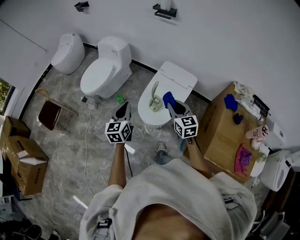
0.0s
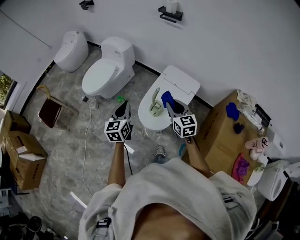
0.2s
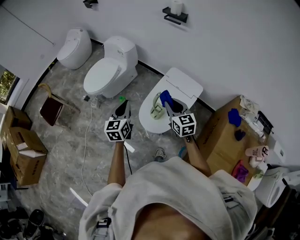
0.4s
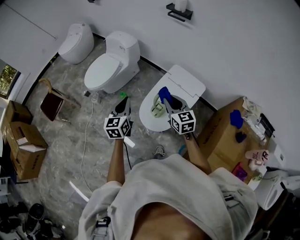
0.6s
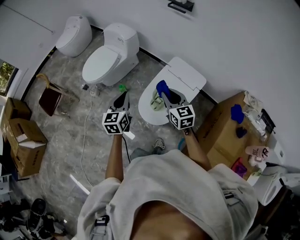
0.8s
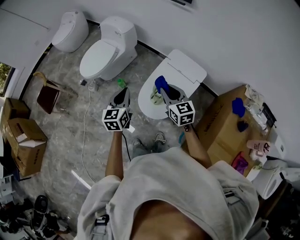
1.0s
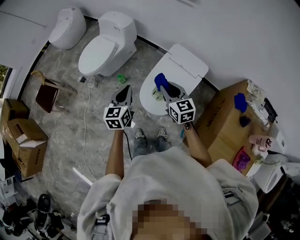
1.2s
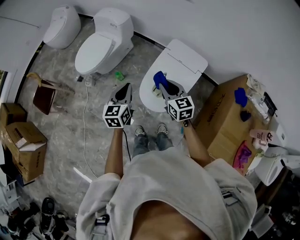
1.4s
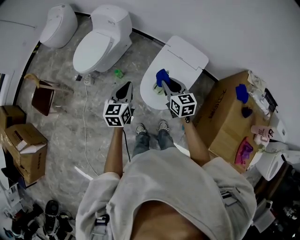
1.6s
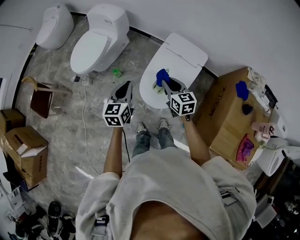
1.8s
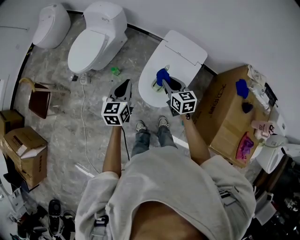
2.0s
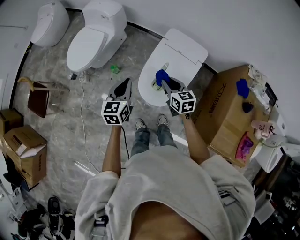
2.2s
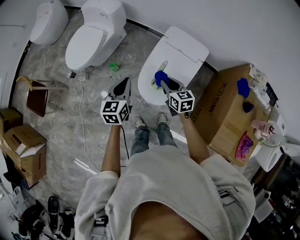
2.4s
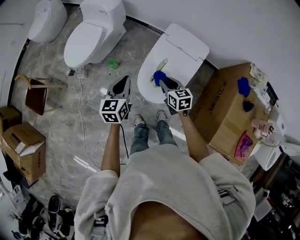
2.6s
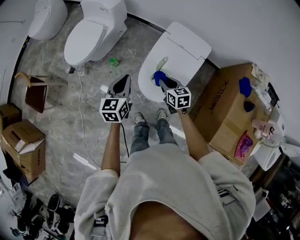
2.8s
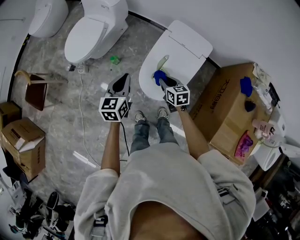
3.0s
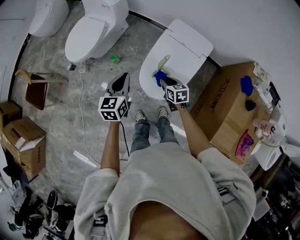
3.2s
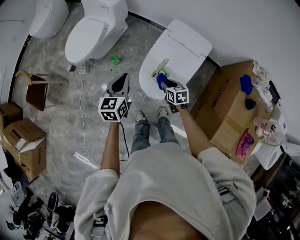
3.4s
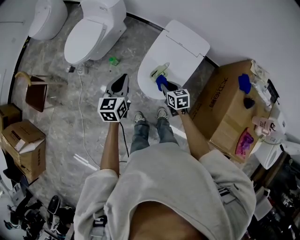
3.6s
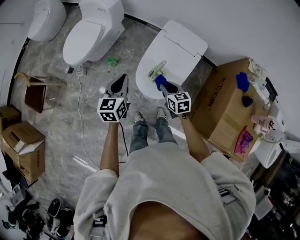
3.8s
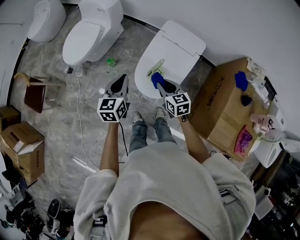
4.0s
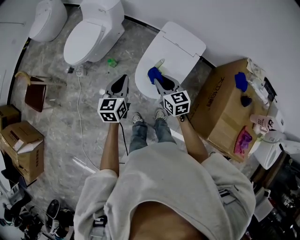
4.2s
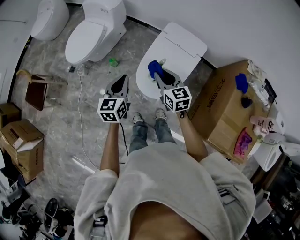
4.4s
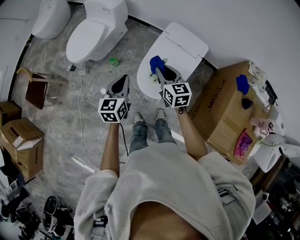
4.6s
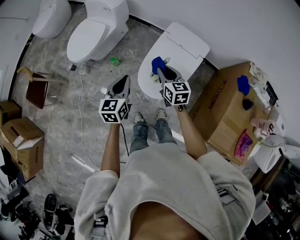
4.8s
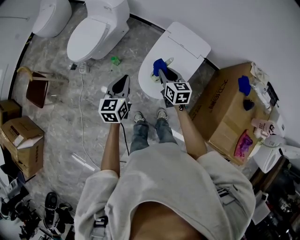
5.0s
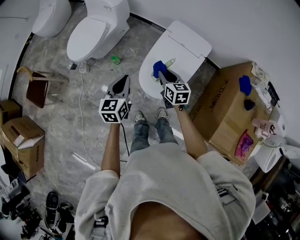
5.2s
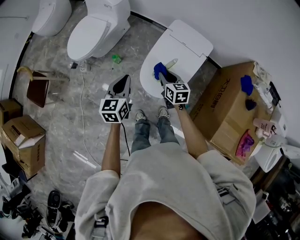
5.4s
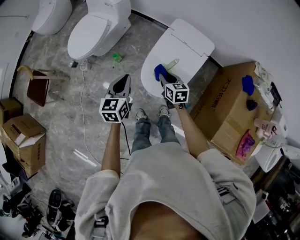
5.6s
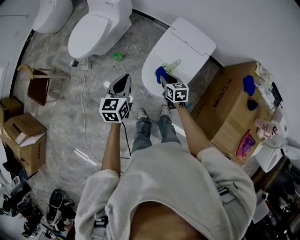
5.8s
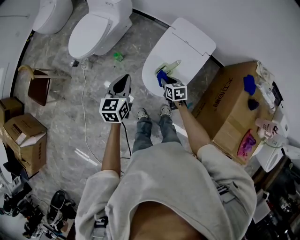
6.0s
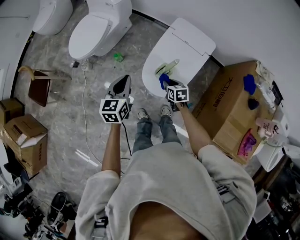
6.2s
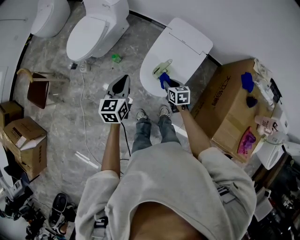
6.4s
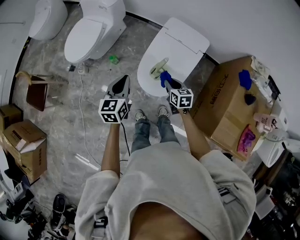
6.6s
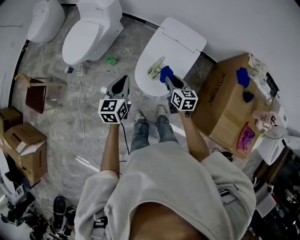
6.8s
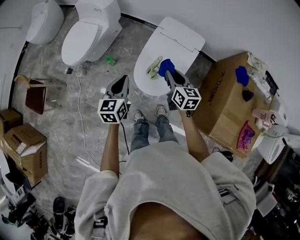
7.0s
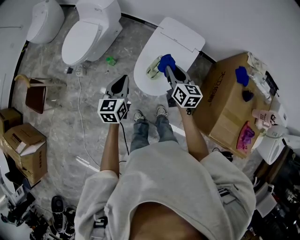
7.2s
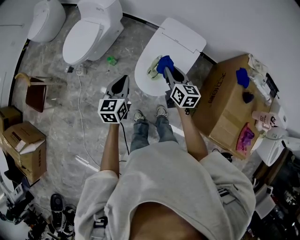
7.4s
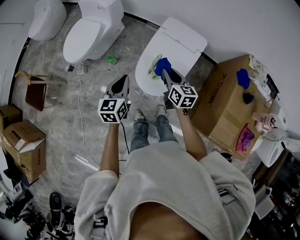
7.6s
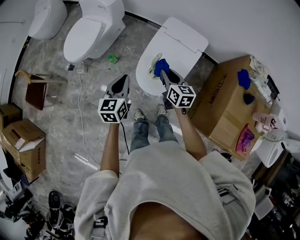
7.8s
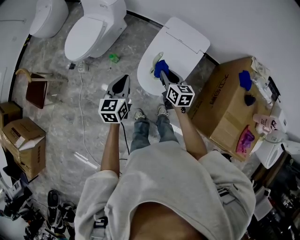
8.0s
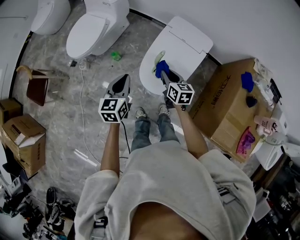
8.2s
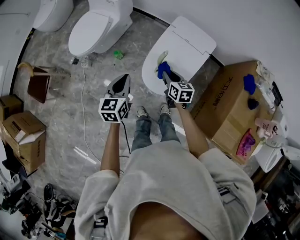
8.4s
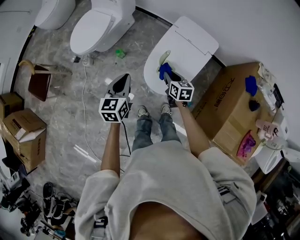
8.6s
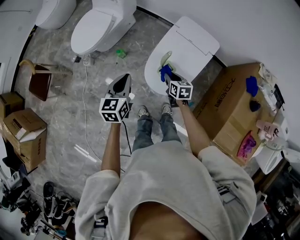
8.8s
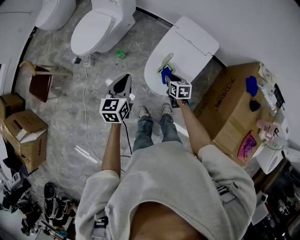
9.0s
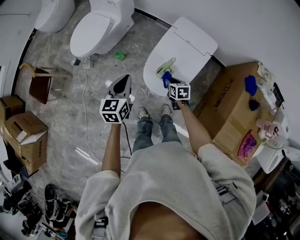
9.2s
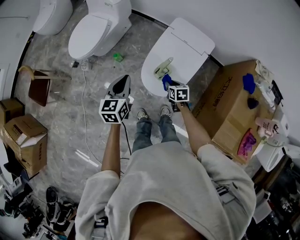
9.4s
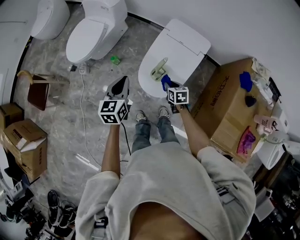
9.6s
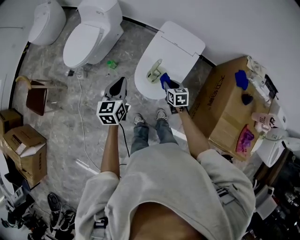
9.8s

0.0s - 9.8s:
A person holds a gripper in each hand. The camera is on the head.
0.0s - 1.4s: The left gripper moves forward, some 10 cm. The right gripper shifts roughly 10 cm forward and to the left.
1.4s - 2.8s: The right gripper shifts approximately 15 cm downward, and swivels roughly 20 degrees. The left gripper ends up some 5 cm from where it was.
2.8s - 4.2s: The right gripper heads upward, covering about 10 cm.
4.2s - 5.6s: The right gripper travels downward by approximately 10 cm.
5.6s - 7.0s: The right gripper travels upward and to the right by some 10 cm.
7.0s - 8.4s: The right gripper heads downward and to the left, covering some 10 cm.
8.4s - 9.8s: The right gripper travels to the right by about 5 cm.

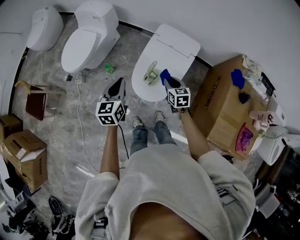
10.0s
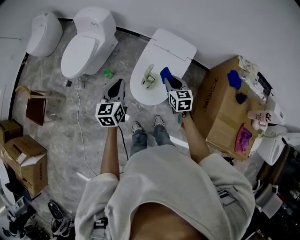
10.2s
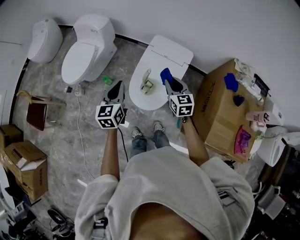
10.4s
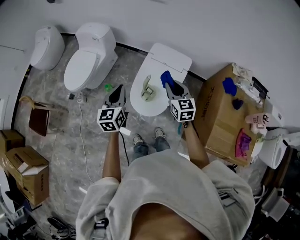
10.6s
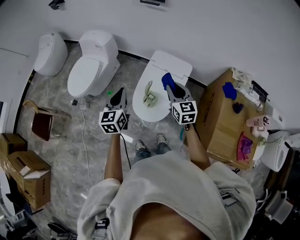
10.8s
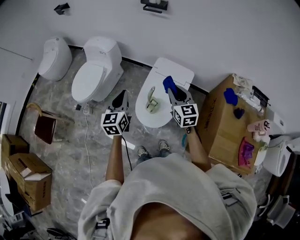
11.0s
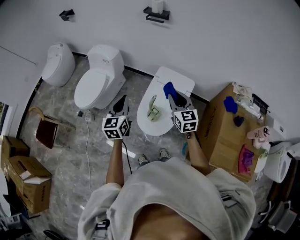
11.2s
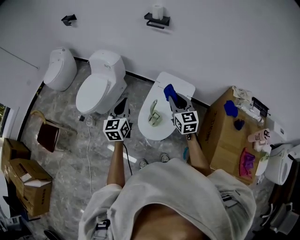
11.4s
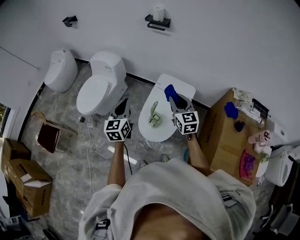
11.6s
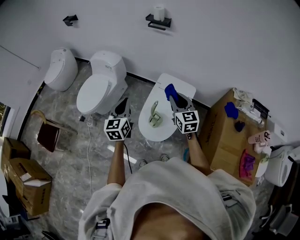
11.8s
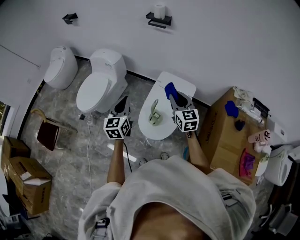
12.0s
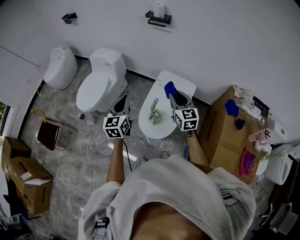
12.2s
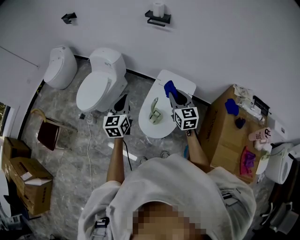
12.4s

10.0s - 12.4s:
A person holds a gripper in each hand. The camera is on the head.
10.0s - 11.2s: The left gripper is displaced upward by about 10 cm. The right gripper travels upward by about 20 cm, and swivels roughly 30 degrees.
11.2s - 12.4s: The grippers stay close to where they were, moving slightly.

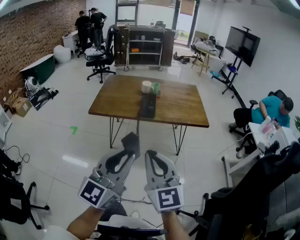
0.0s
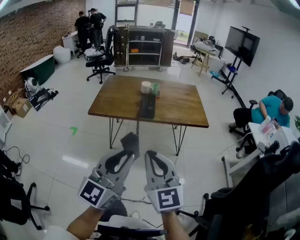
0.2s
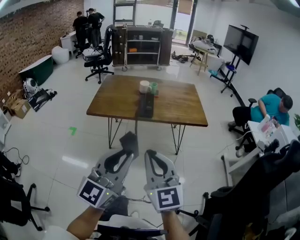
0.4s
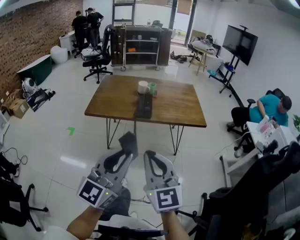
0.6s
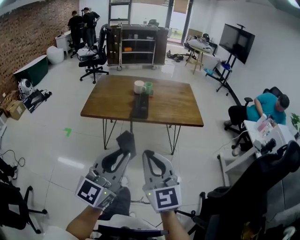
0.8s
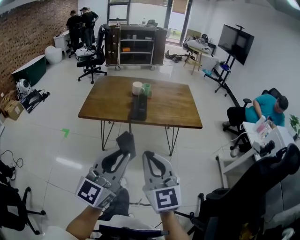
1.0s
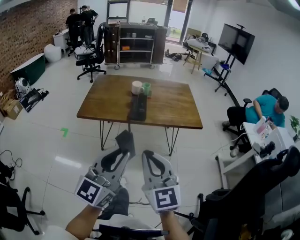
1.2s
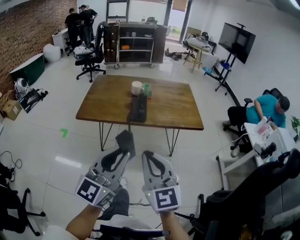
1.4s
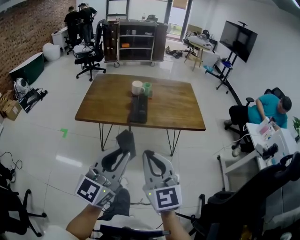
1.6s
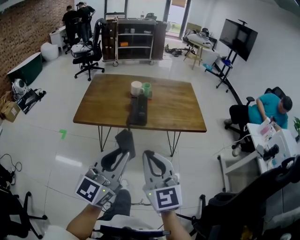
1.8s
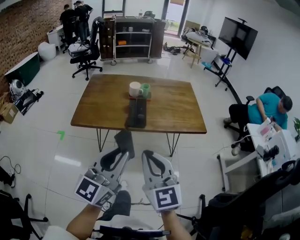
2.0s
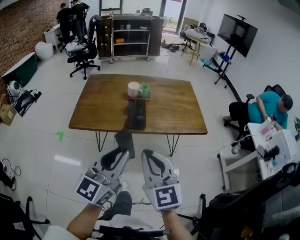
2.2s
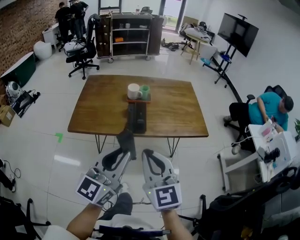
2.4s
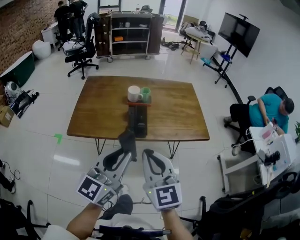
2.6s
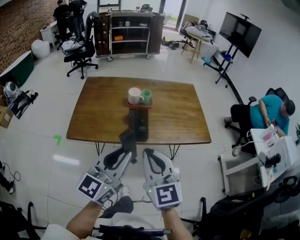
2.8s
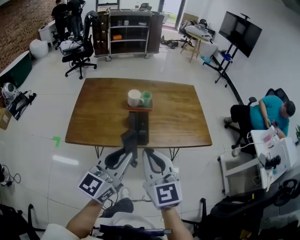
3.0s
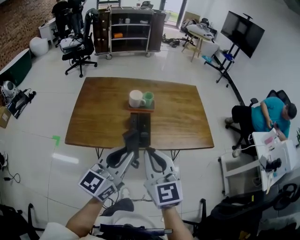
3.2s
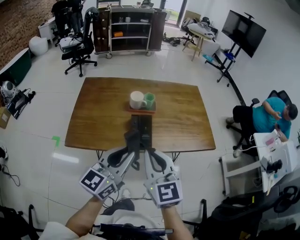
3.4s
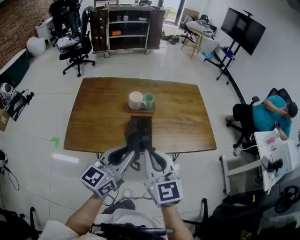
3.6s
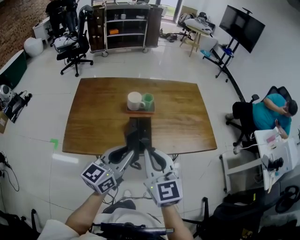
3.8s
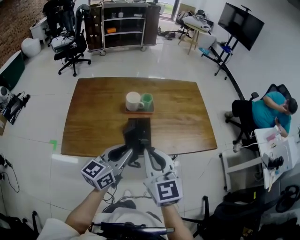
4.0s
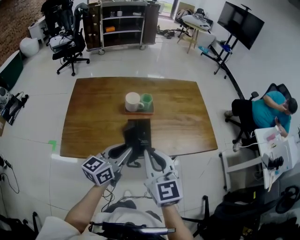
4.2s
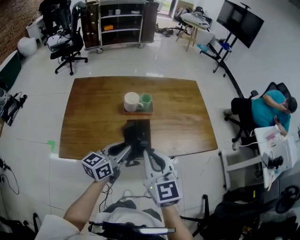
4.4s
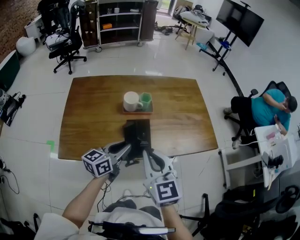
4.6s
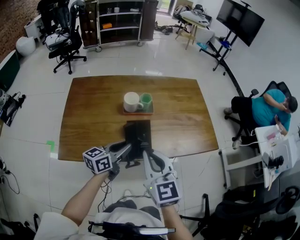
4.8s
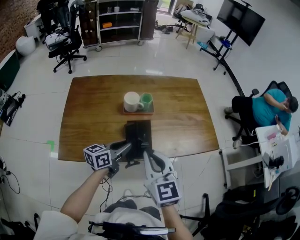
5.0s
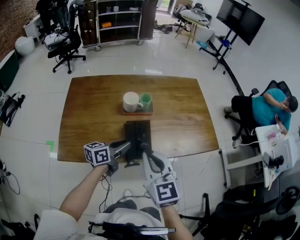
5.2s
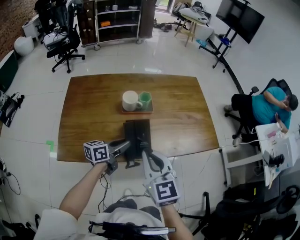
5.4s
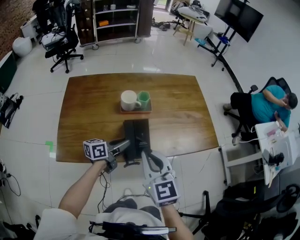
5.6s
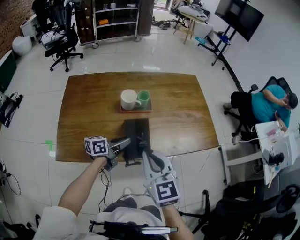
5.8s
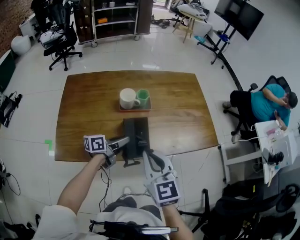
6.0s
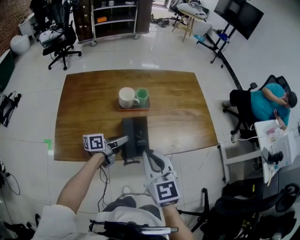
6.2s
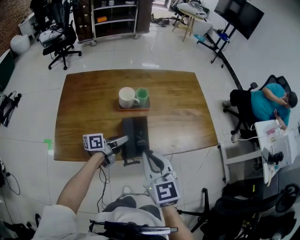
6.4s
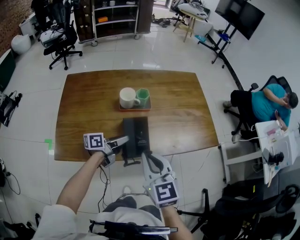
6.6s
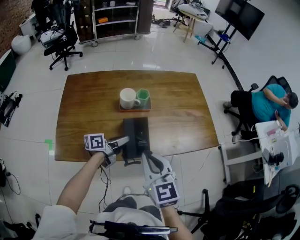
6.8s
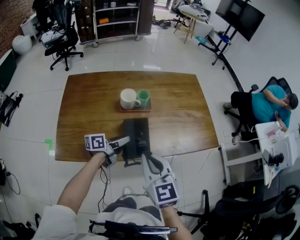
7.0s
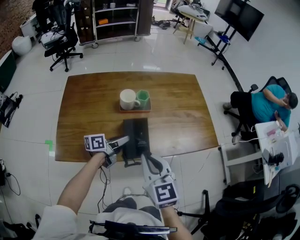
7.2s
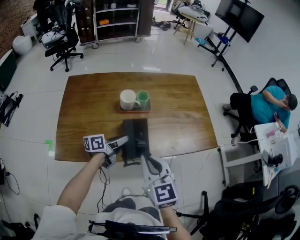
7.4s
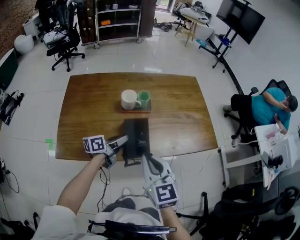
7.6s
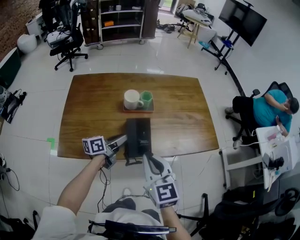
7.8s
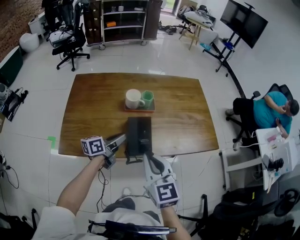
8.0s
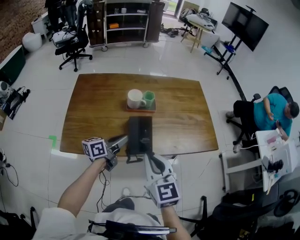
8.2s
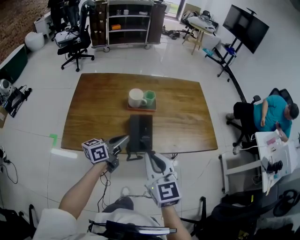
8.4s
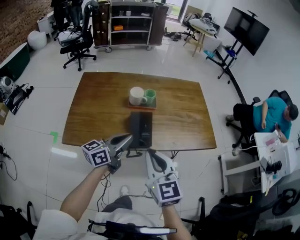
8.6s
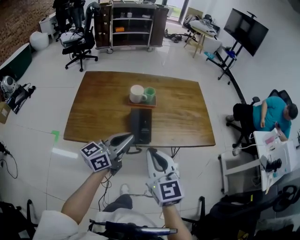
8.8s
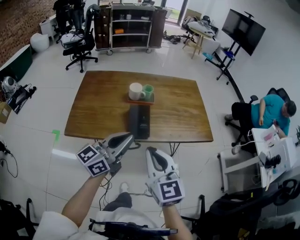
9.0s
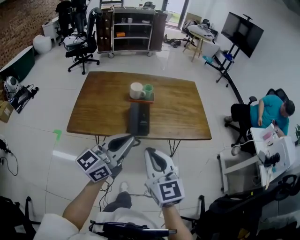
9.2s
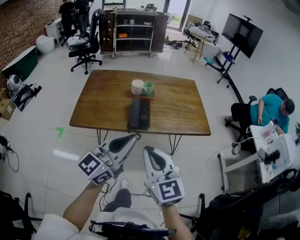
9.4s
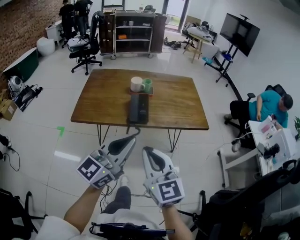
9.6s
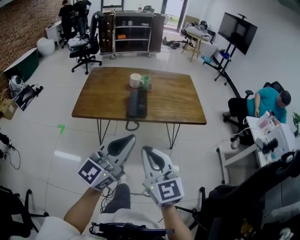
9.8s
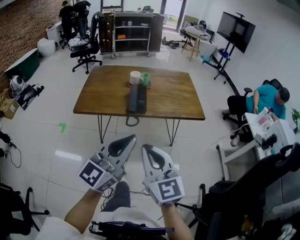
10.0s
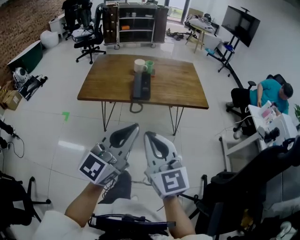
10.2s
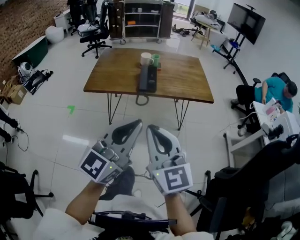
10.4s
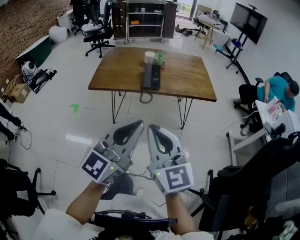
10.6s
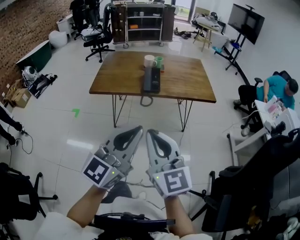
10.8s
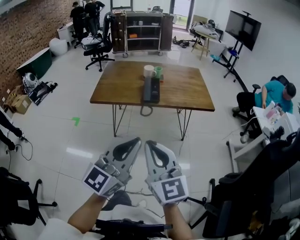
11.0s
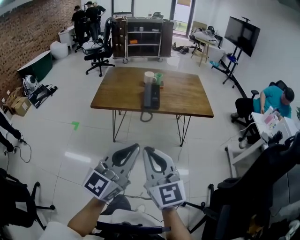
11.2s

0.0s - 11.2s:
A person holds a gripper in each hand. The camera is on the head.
0.0s - 1.6s: Both grippers move forward, about 10 cm.
1.6s - 3.2s: The two grippers go about 25 cm forward.
3.2s - 4.8s: The left gripper moves forward and downward, roughly 25 cm, and changes its angle by some 30 degrees; the right gripper goes some 10 cm forward and downward.
4.8s - 6.4s: The left gripper is displaced downward and forward by approximately 10 cm, and changes its angle by approximately 30 degrees.
6.4s - 8.0s: The left gripper shifts by about 5 cm.
8.0s - 9.6s: The right gripper heads backward, covering some 25 cm, while the left gripper heads backward and upward, covering roughly 40 cm, and twists roughly 50 degrees clockwise, seen from behind.
9.6s - 11.2s: The two grippers go some 20 cm backward.
